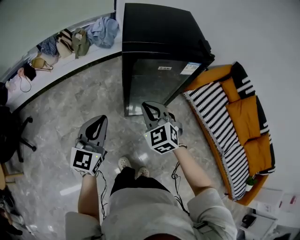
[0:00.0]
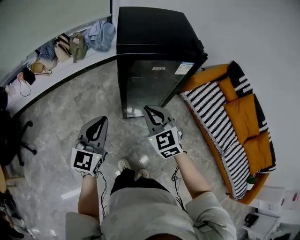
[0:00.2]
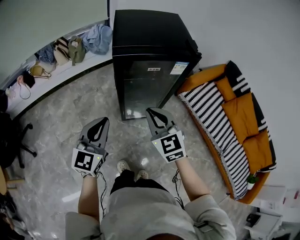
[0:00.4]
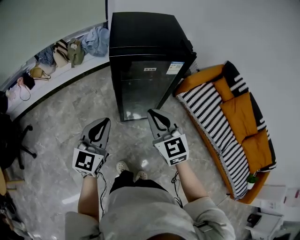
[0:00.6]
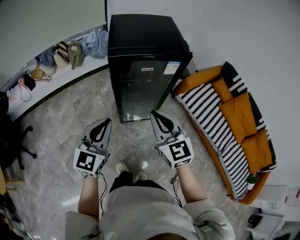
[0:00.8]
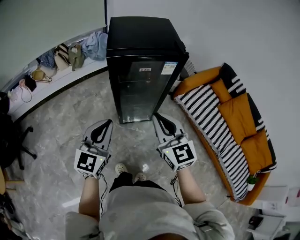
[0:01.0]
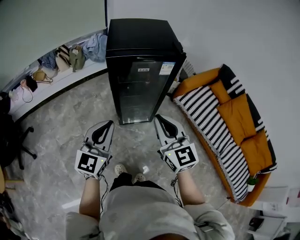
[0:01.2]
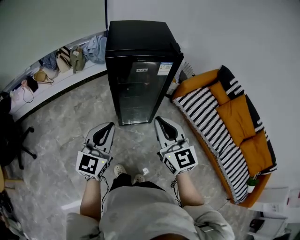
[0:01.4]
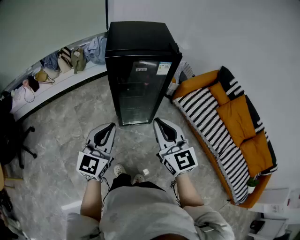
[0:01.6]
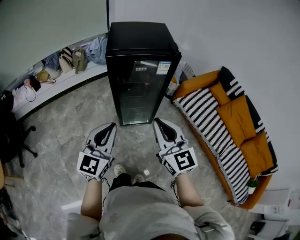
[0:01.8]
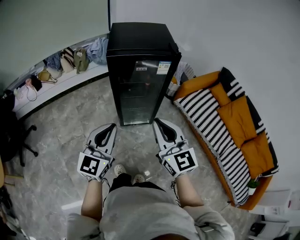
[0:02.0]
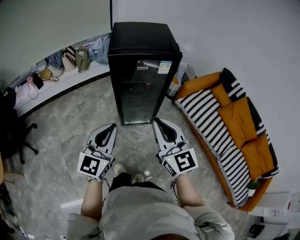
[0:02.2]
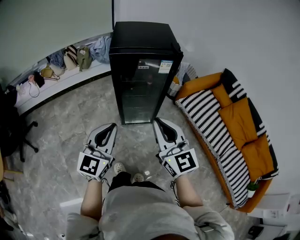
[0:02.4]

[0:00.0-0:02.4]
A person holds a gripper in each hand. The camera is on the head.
0:00.0 to 0:01.2: The left gripper changes place by roughly 15 cm.
0:01.2 to 0:02.4: The left gripper ends up some 5 cm from where it was.

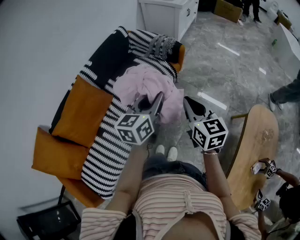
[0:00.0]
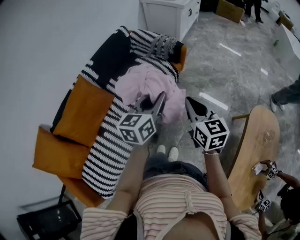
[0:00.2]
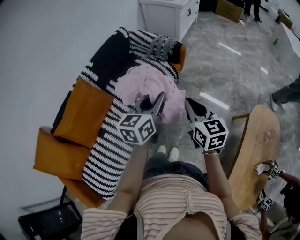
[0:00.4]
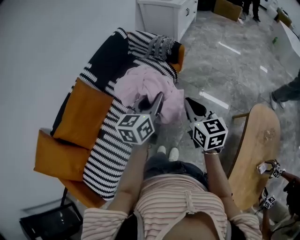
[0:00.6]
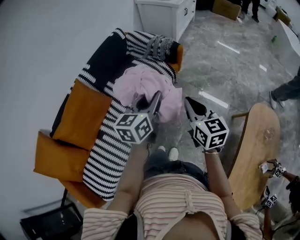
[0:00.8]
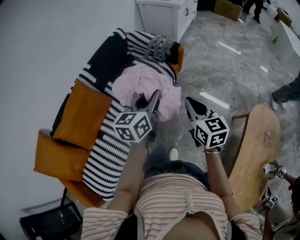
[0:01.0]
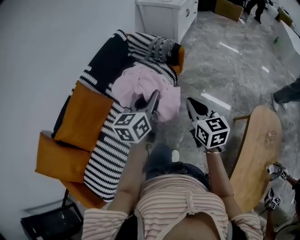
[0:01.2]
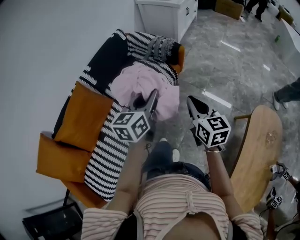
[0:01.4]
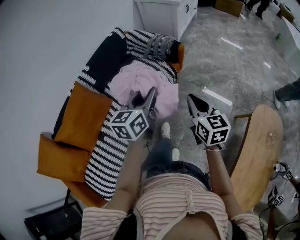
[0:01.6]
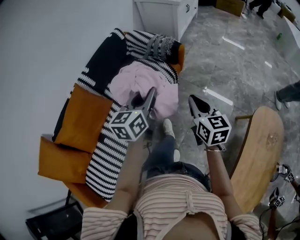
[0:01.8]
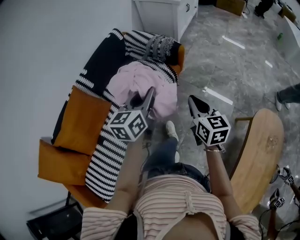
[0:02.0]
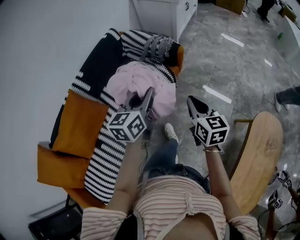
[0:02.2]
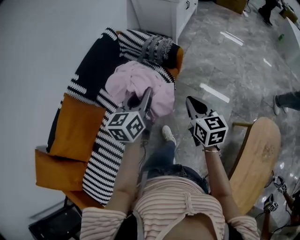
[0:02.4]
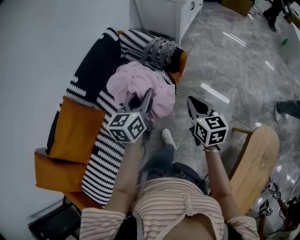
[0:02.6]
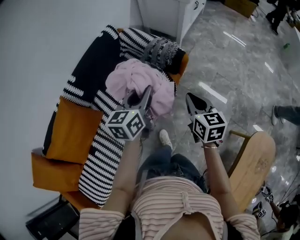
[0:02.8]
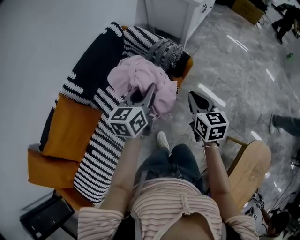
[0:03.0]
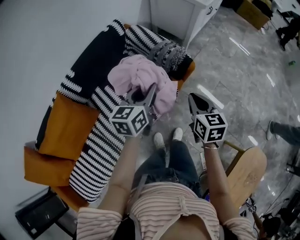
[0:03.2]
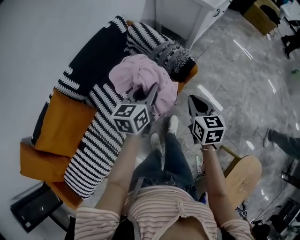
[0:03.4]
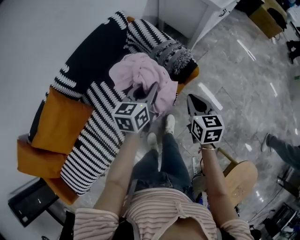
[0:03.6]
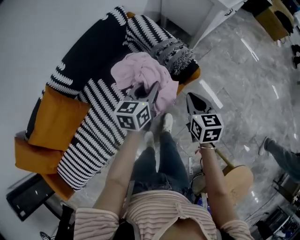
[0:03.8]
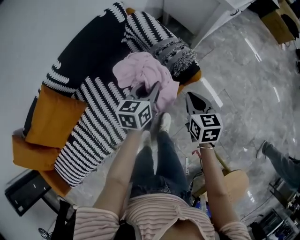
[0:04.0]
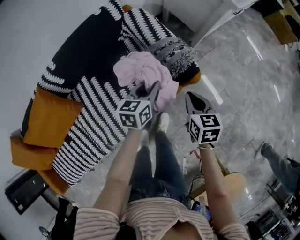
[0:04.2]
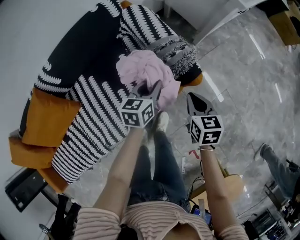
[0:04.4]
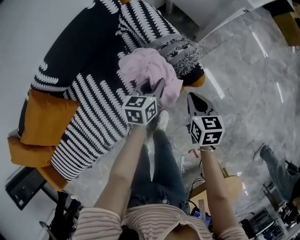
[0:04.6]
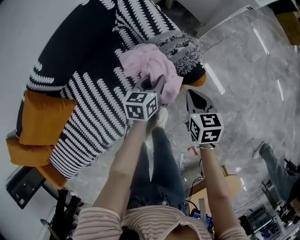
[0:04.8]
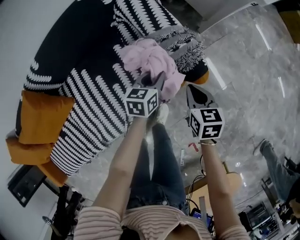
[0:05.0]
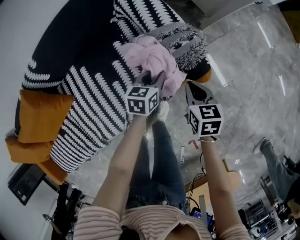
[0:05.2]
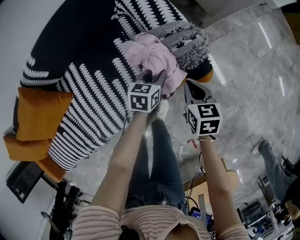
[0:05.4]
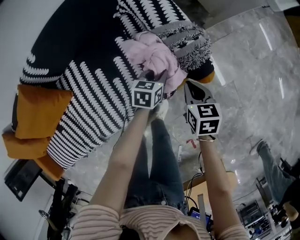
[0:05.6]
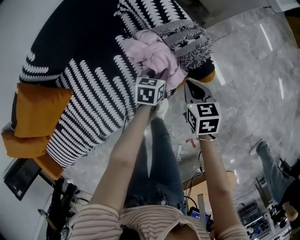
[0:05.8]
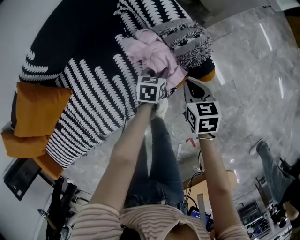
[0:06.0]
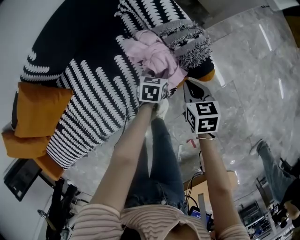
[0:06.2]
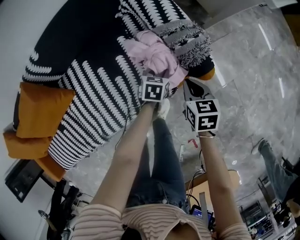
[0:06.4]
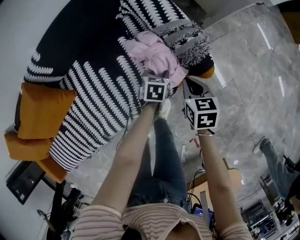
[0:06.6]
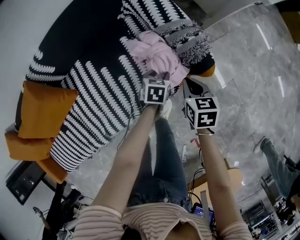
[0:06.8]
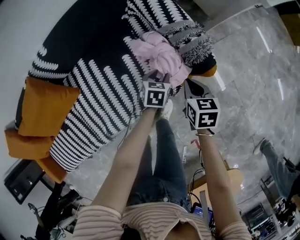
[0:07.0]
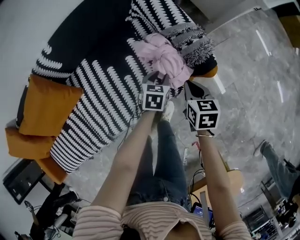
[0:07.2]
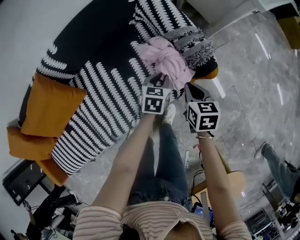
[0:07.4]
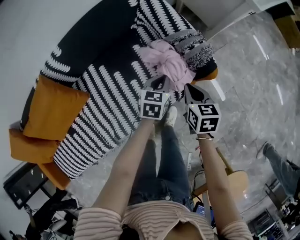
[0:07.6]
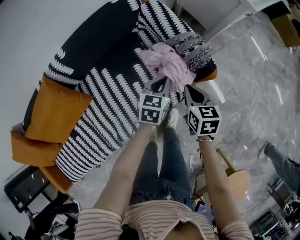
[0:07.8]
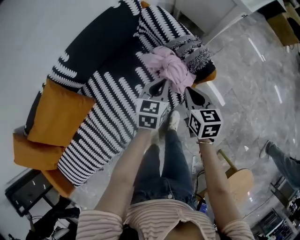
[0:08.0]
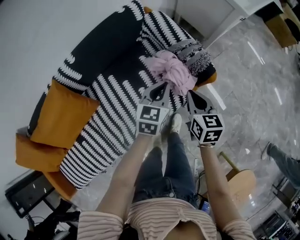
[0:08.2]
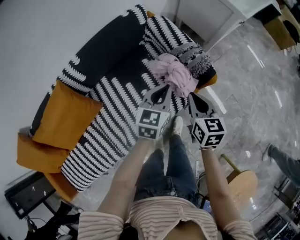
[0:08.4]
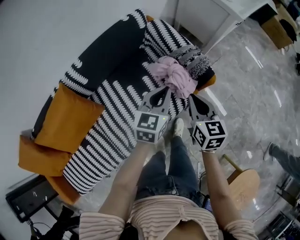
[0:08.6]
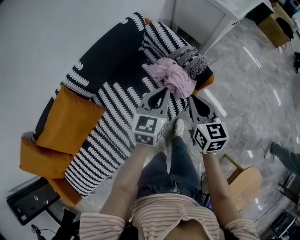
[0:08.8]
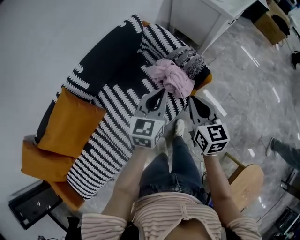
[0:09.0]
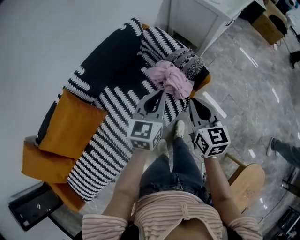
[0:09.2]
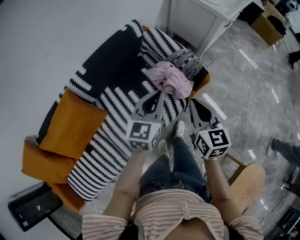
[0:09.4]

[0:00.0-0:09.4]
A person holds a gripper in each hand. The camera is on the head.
0:00.0 to 0:01.6: The right gripper shifts roughly 5 cm to the right. Meanwhile the left gripper moves forward, some 5 cm.
0:01.6 to 0:03.2: The grippers both shift forward by about 35 cm.
0:03.2 to 0:04.8: The left gripper moves downward and forward, approximately 35 cm, and changes its angle by approximately 20 degrees, while the right gripper heads forward and downward, covering about 30 cm, and changes its angle by roughly 20 degrees.
0:04.8 to 0:06.2: The left gripper moves downward, approximately 15 cm; the right gripper heads downward, covering about 5 cm.
0:06.2 to 0:07.8: The right gripper heads upward, backward and to the left, covering approximately 15 cm, while the left gripper heads upward, covering approximately 20 cm, rotates approximately 20 degrees, and closes.
0:07.8 to 0:09.4: Both grippers move upward and backward, about 25 cm. The left gripper changes its angle by approximately 20 degrees, while the right gripper changes its angle by approximately 20 degrees.

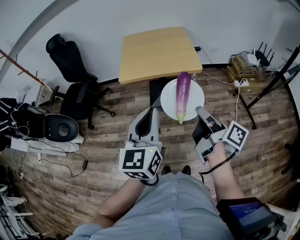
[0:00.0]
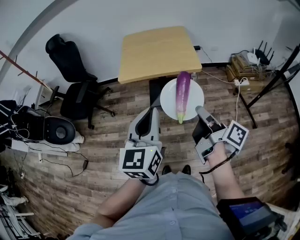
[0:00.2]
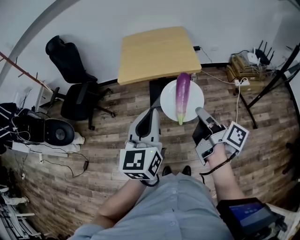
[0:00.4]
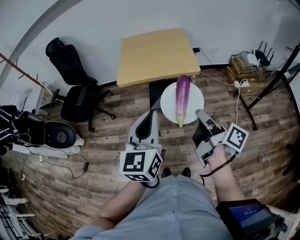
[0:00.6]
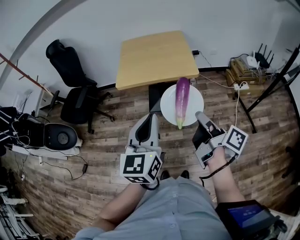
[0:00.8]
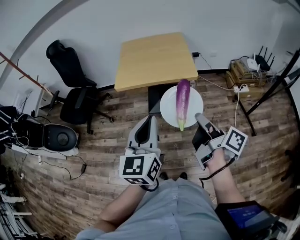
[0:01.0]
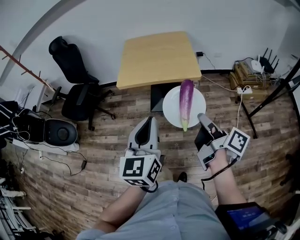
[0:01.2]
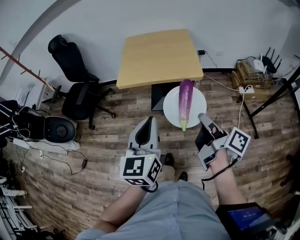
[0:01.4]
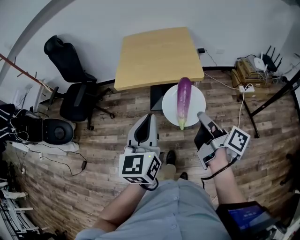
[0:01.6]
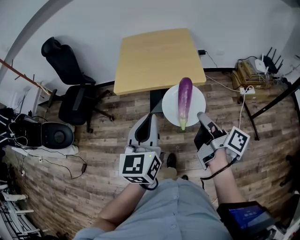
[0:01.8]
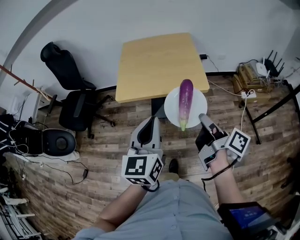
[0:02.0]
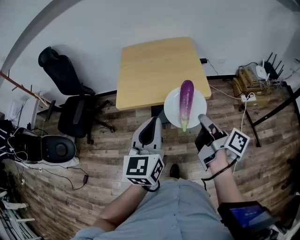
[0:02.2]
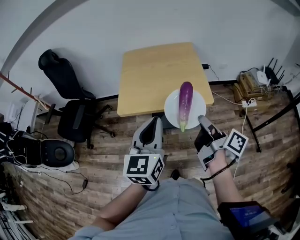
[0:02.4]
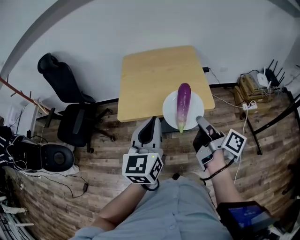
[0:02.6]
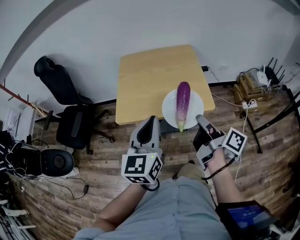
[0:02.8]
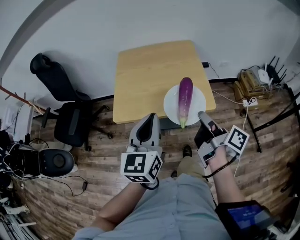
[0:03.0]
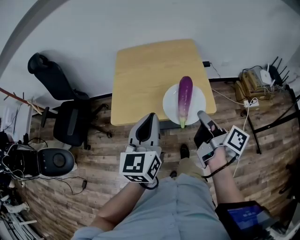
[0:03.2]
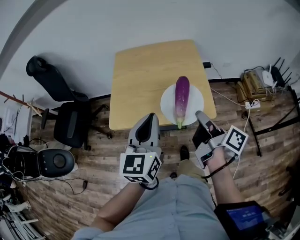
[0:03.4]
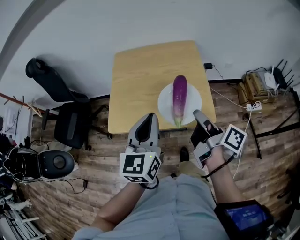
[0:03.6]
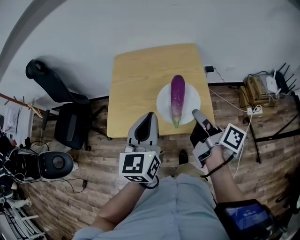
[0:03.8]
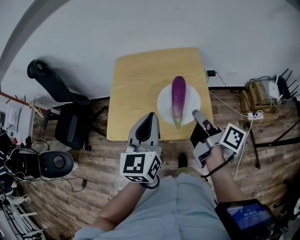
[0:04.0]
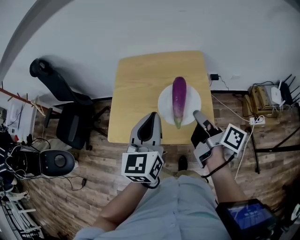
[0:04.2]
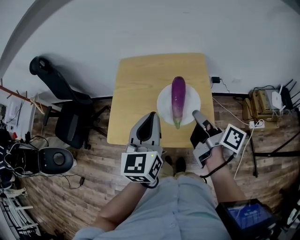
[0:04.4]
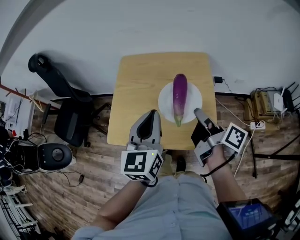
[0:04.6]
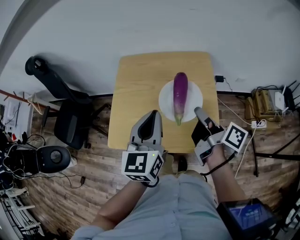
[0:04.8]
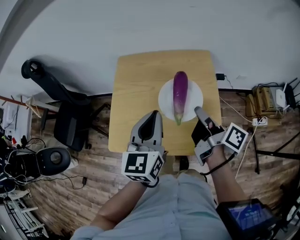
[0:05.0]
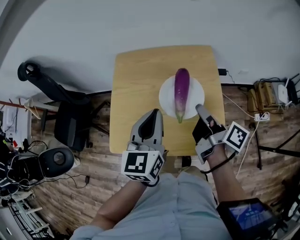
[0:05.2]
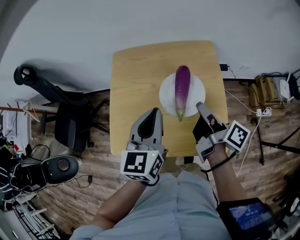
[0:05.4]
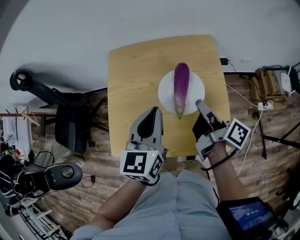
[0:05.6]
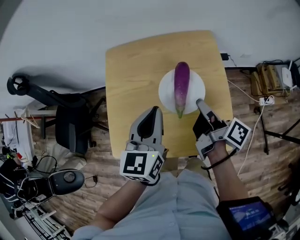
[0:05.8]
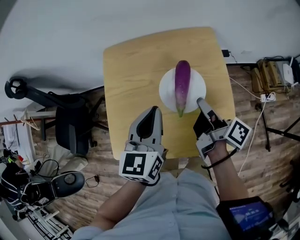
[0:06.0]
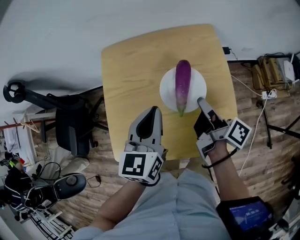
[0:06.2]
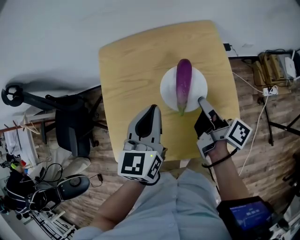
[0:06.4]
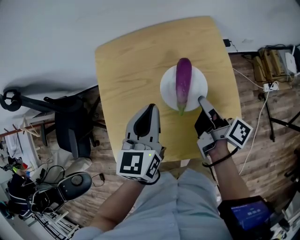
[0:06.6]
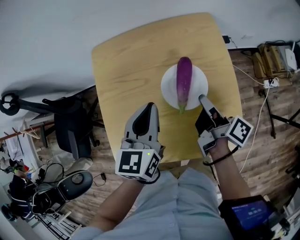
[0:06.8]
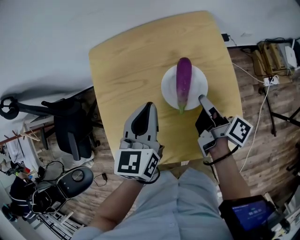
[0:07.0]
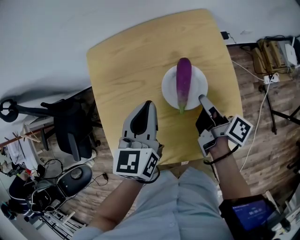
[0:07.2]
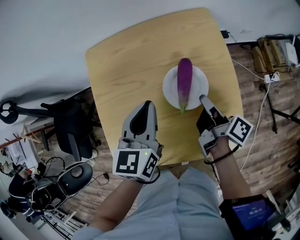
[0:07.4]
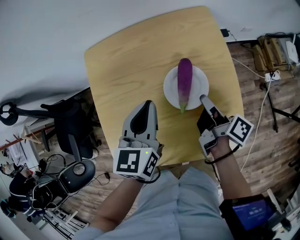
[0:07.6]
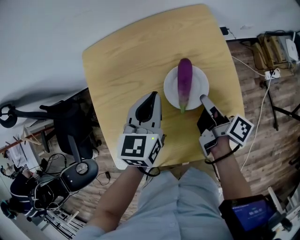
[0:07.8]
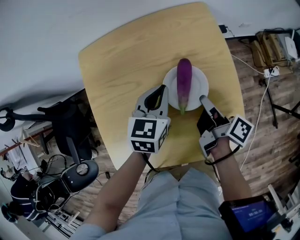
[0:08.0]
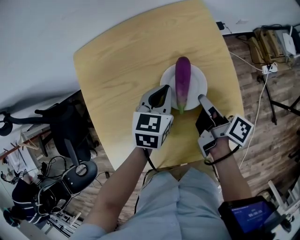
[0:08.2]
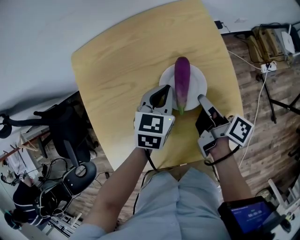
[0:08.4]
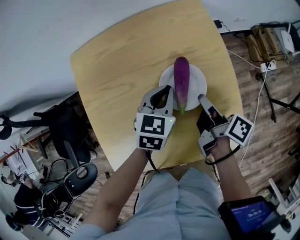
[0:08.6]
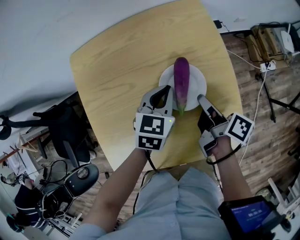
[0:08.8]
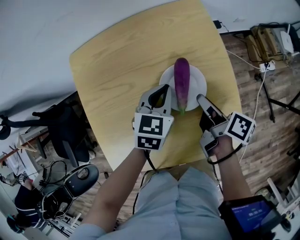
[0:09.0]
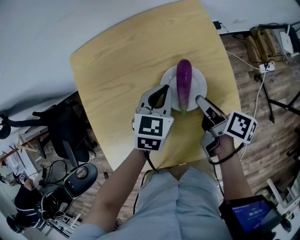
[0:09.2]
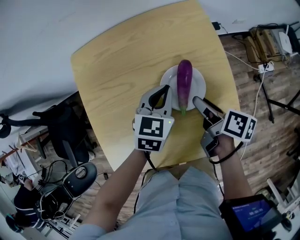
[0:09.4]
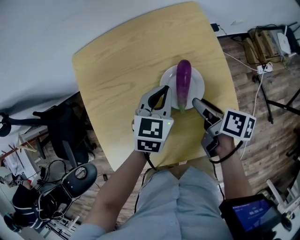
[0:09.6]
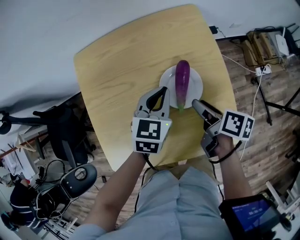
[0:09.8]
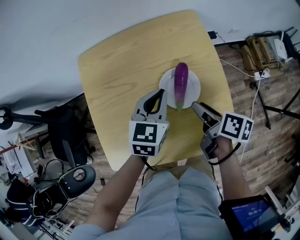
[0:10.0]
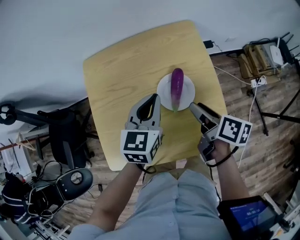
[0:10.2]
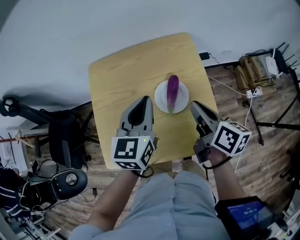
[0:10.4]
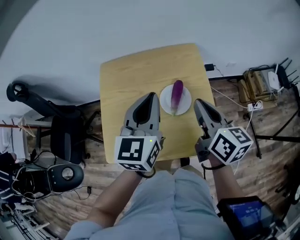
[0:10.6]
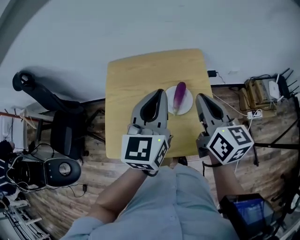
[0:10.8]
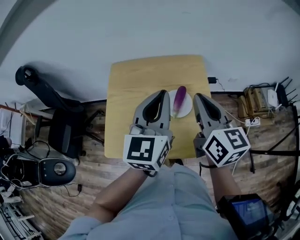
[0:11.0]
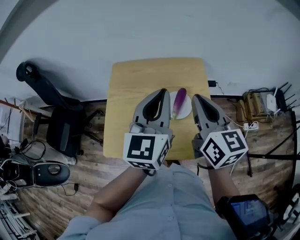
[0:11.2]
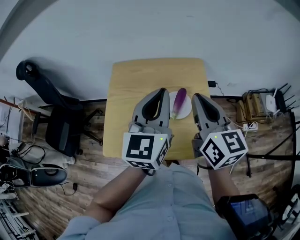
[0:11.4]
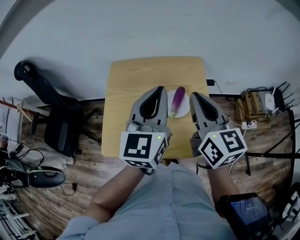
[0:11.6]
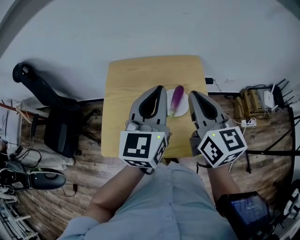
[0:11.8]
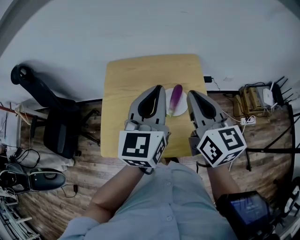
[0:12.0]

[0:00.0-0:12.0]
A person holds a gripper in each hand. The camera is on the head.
0:00.0 to 0:01.6: The left gripper moves about 10 cm.
0:01.6 to 0:03.0: The left gripper shifts by about 25 cm.
0:03.0 to 0:04.4: The left gripper ends up approximately 20 cm from where it was.
0:04.4 to 0:06.0: The left gripper moves roughly 15 cm.
0:06.0 to 0:07.6: The left gripper goes some 5 cm downward.
0:07.6 to 0:09.0: The left gripper shifts approximately 10 cm downward, and swivels approximately 20 degrees.
0:09.0 to 0:10.4: The left gripper goes roughly 20 cm upward, and turns by roughly 30 degrees.
0:10.4 to 0:12.0: The left gripper shifts about 15 cm upward.
